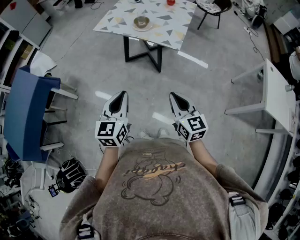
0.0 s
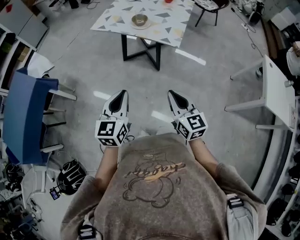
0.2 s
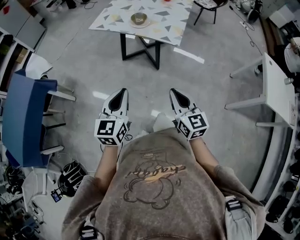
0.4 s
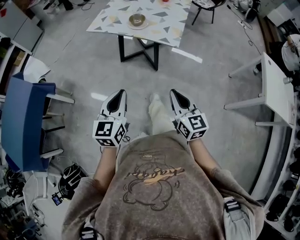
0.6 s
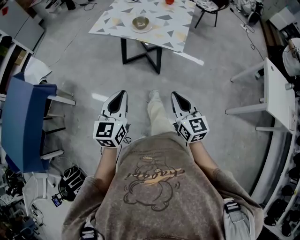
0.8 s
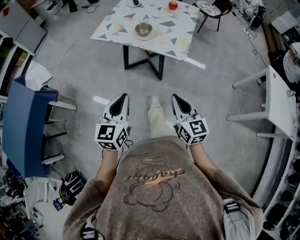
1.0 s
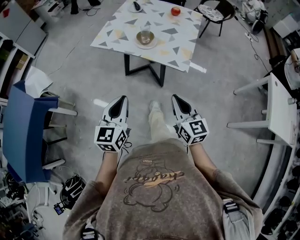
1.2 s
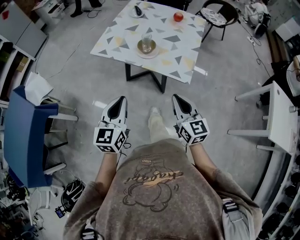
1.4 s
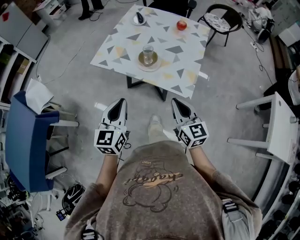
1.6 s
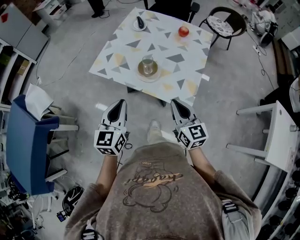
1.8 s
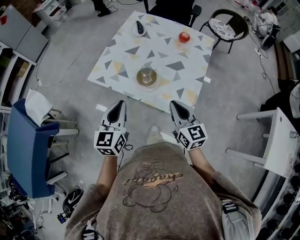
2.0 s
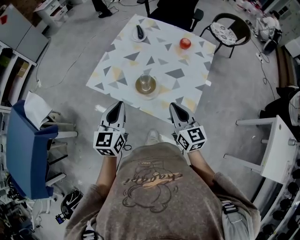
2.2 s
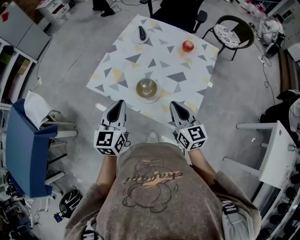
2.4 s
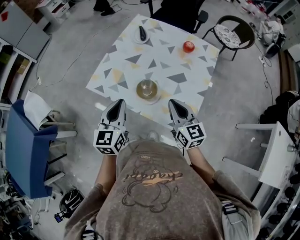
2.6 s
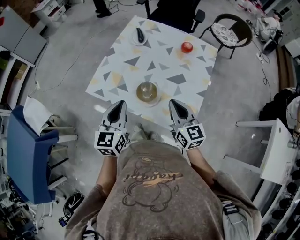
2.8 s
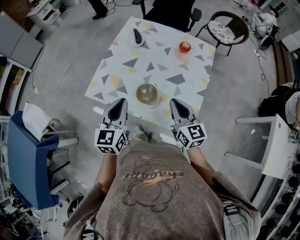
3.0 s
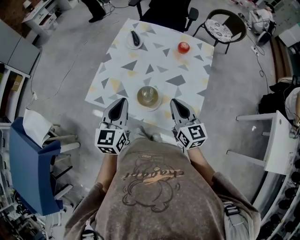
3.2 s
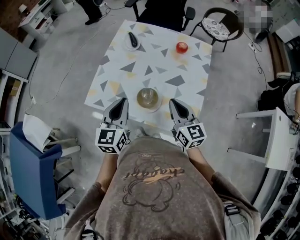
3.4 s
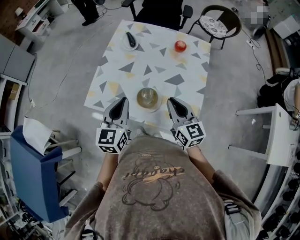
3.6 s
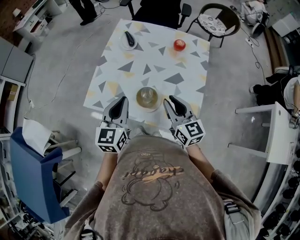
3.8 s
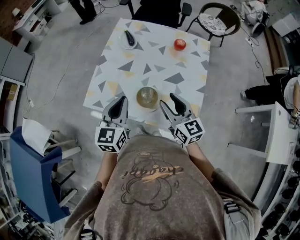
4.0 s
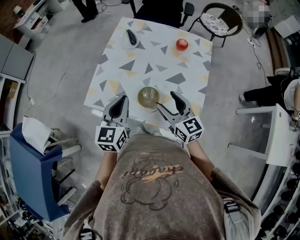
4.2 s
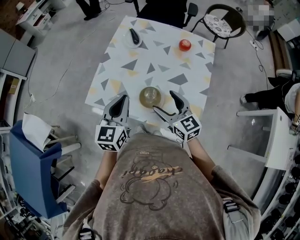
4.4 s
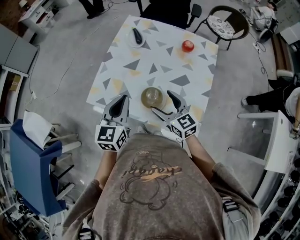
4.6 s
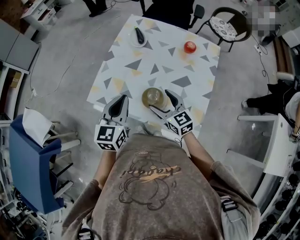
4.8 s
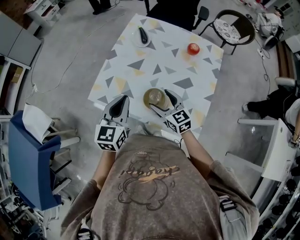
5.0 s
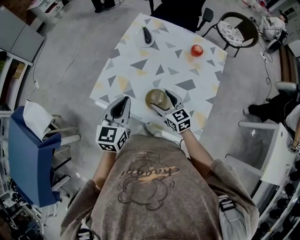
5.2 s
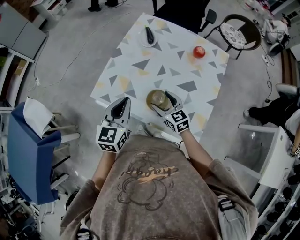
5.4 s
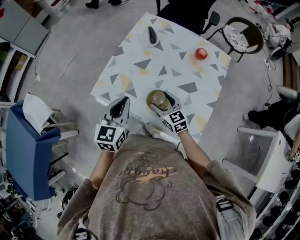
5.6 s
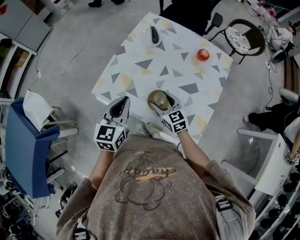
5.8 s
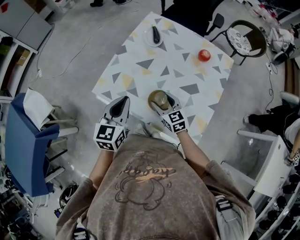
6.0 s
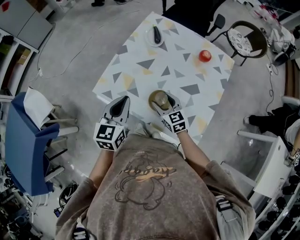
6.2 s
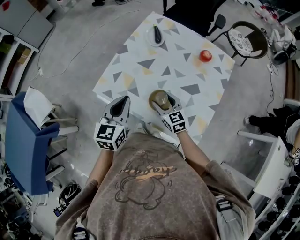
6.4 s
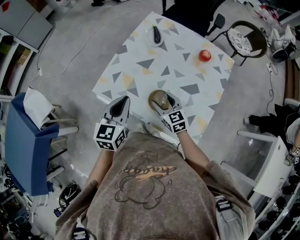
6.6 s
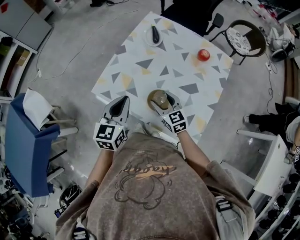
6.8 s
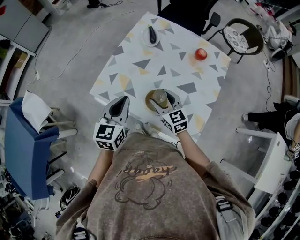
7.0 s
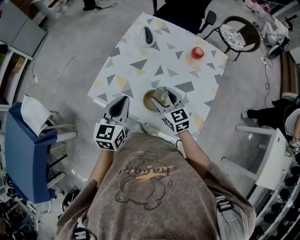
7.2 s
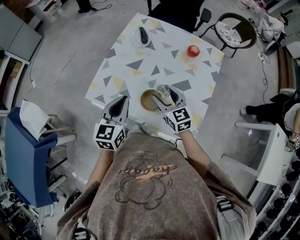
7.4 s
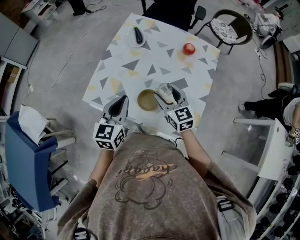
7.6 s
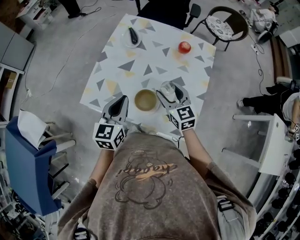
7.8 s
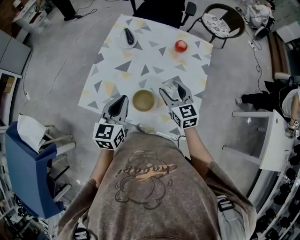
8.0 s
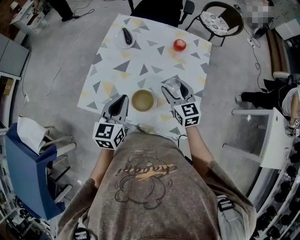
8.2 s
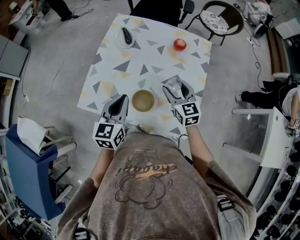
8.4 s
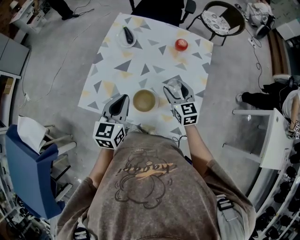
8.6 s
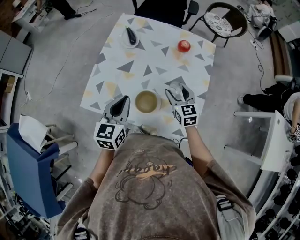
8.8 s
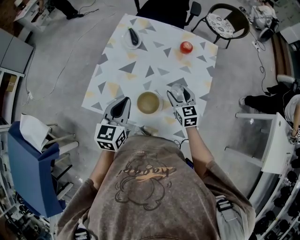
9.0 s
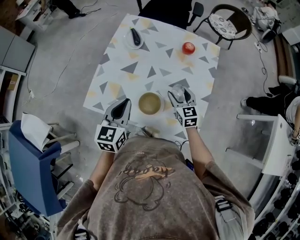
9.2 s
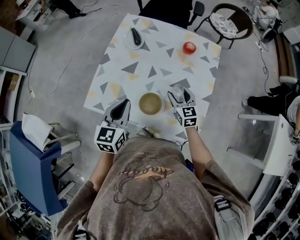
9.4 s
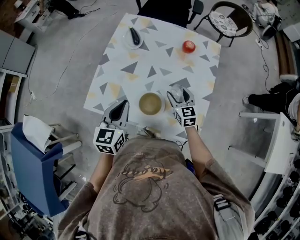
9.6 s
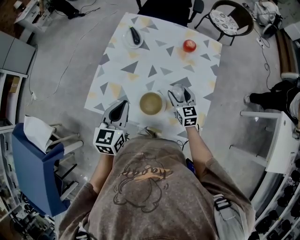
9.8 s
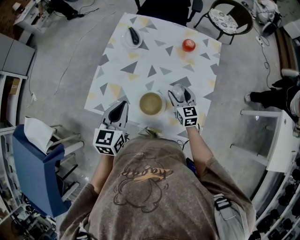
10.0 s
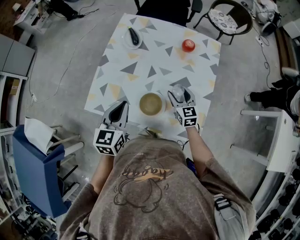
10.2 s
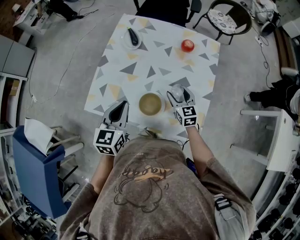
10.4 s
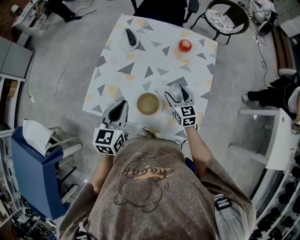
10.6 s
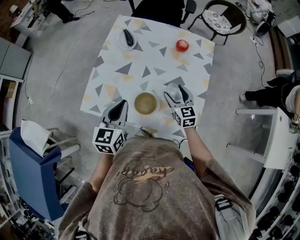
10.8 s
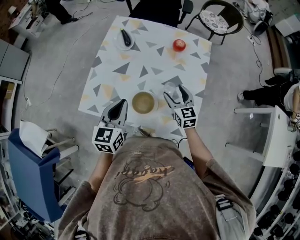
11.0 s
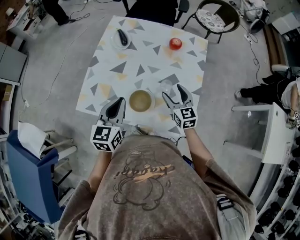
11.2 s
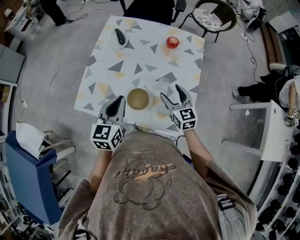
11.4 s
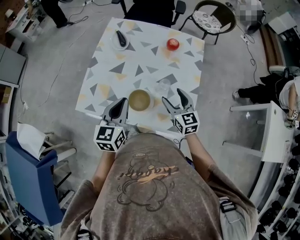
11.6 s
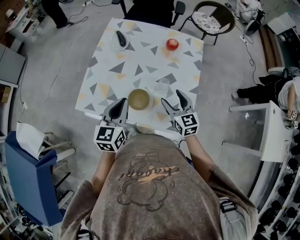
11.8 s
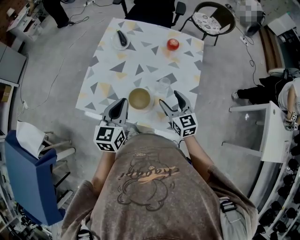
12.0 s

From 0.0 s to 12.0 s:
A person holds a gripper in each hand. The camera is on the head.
From 0.0 s to 1.6 s: The grippers both shift forward by some 30 cm.
From 1.6 s to 3.0 s: The grippers both shift forward by about 25 cm.
From 3.0 s to 4.4 s: The right gripper goes roughly 5 cm to the left, and opens. The left gripper is displaced forward by about 5 cm.
From 4.4 s to 6.0 s: The right gripper moves downward and forward, about 15 cm.
From 6.0 s to 7.6 s: The right gripper goes some 10 cm upward and to the right.
From 7.6 s to 9.0 s: The right gripper shifts roughly 10 cm to the right and downward.
From 9.0 s to 10.4 s: The grippers make only small movements.
From 10.4 s to 12.0 s: The right gripper heads backward and upward, covering about 10 cm.

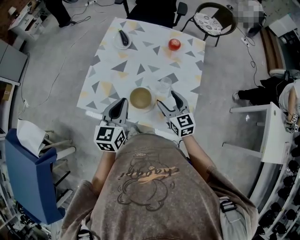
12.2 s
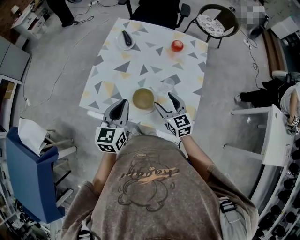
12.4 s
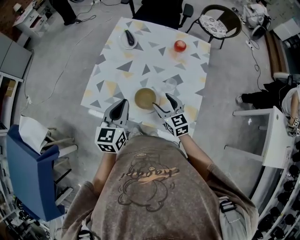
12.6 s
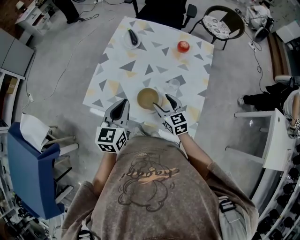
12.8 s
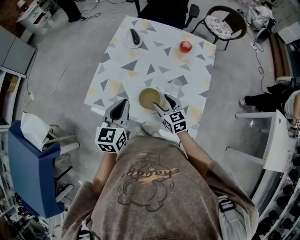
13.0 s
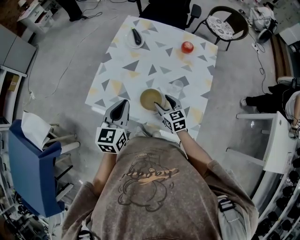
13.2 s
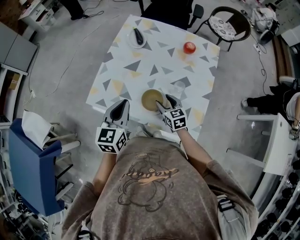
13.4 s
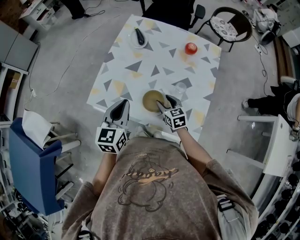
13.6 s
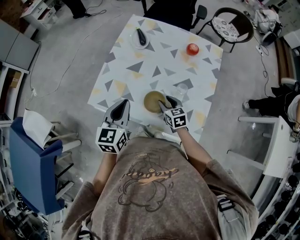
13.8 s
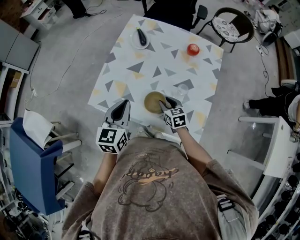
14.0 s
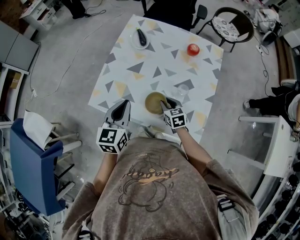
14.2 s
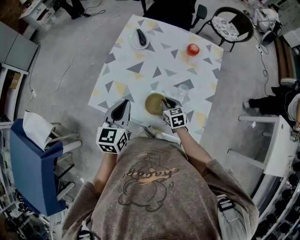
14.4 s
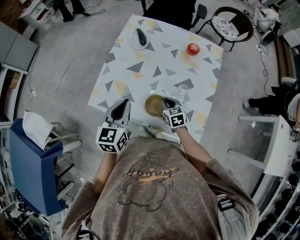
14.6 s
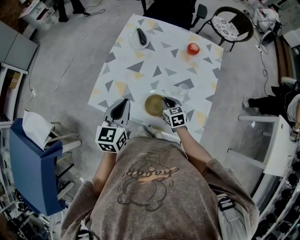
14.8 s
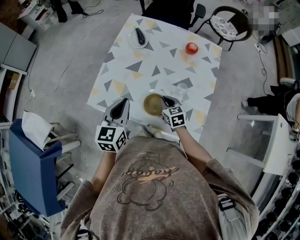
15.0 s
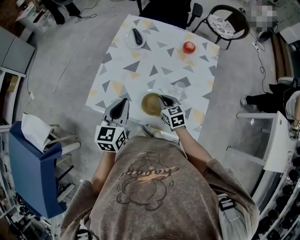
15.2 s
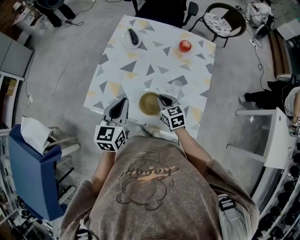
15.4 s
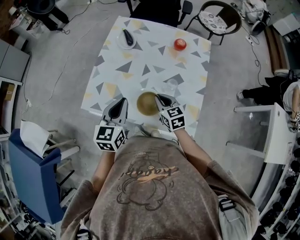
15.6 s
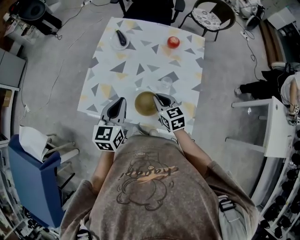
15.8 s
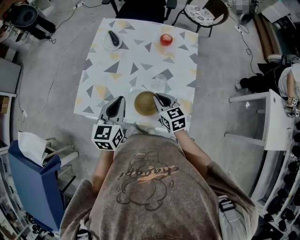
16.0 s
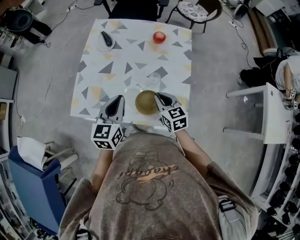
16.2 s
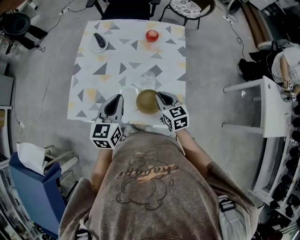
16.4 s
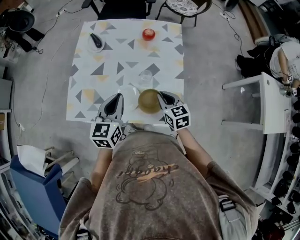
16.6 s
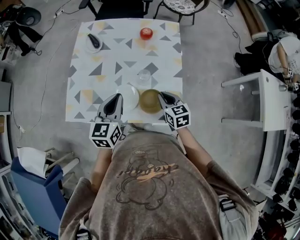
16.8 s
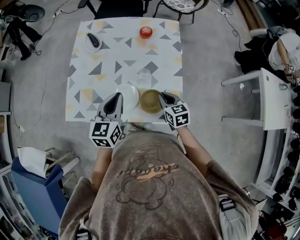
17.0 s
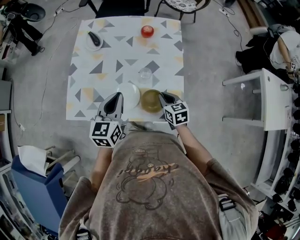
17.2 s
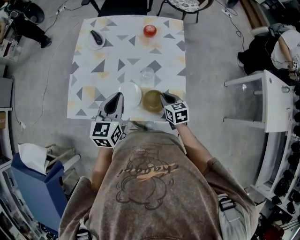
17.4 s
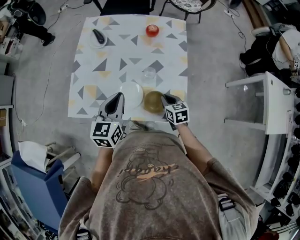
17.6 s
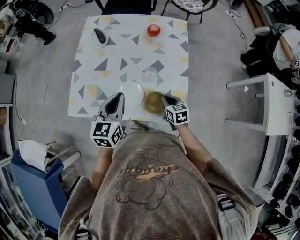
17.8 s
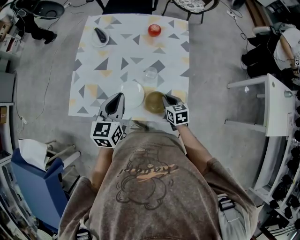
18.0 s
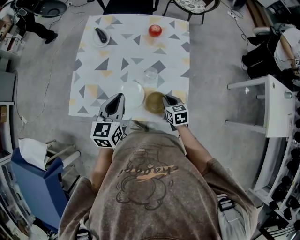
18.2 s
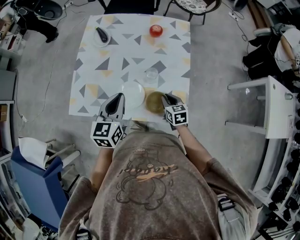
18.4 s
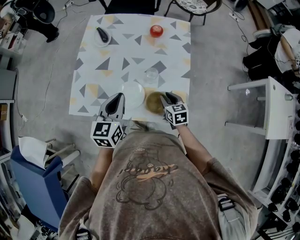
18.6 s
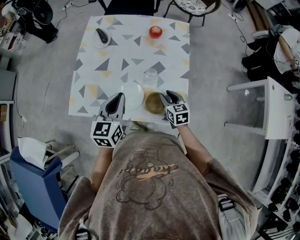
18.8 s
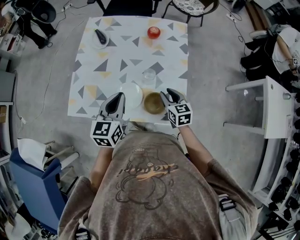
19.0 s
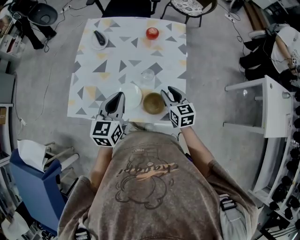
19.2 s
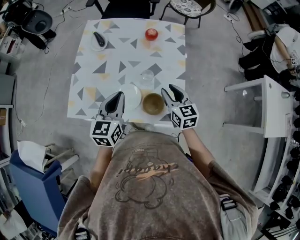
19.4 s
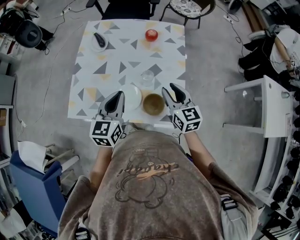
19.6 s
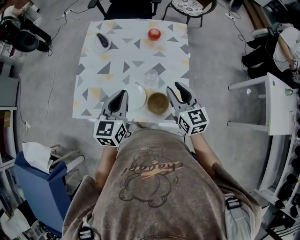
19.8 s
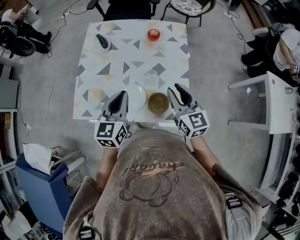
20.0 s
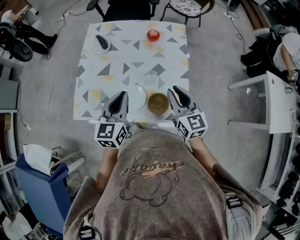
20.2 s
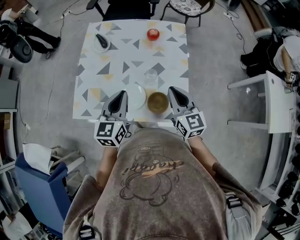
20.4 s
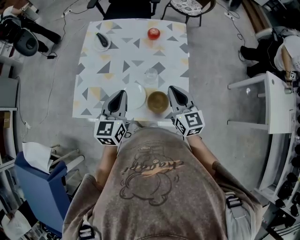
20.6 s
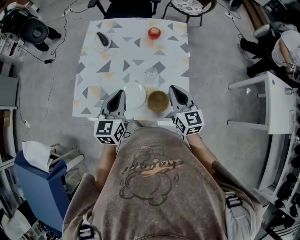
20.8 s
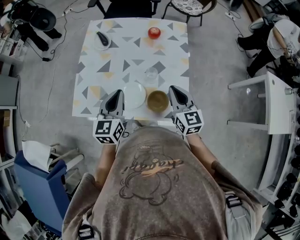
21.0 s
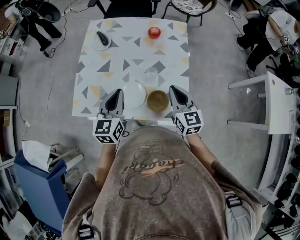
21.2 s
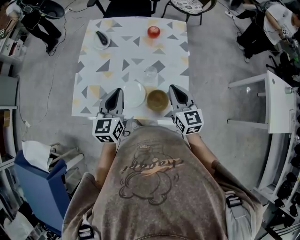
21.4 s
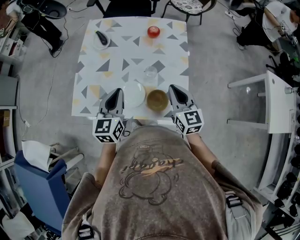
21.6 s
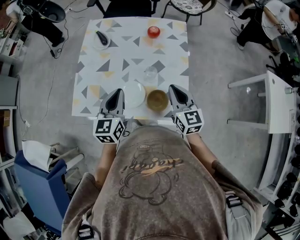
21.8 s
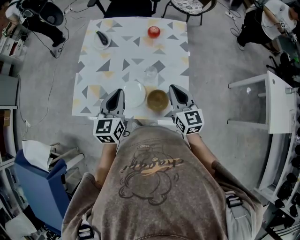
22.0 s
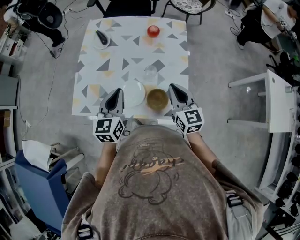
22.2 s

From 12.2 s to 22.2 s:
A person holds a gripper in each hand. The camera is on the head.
From 12.2 s to 13.6 s: The left gripper changes place by roughly 5 cm. Meanwhile the right gripper travels downward and to the left by approximately 15 cm.
From 13.6 s to 15.0 s: The right gripper closes its fingers.
From 15.0 s to 16.4 s: The left gripper heads to the right, covering approximately 10 cm. Meanwhile the right gripper is displaced to the right, upward and backward by some 15 cm.
From 16.4 s to 18.0 s: The right gripper shifts some 10 cm downward.
From 18.0 s to 19.4 s: The right gripper heads upward, covering roughly 15 cm, and rotates some 20 degrees.
From 20.8 s to 22.2 s: Both grippers stay put.

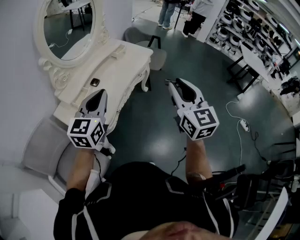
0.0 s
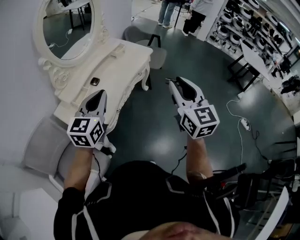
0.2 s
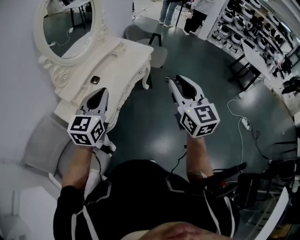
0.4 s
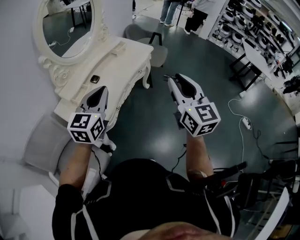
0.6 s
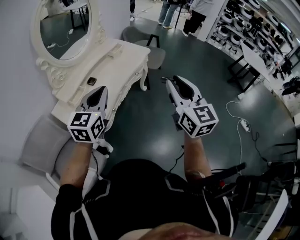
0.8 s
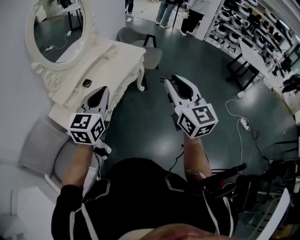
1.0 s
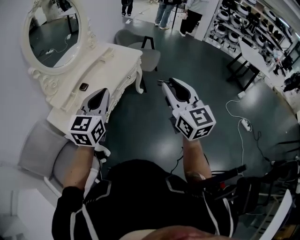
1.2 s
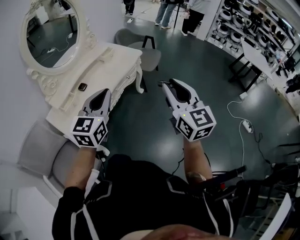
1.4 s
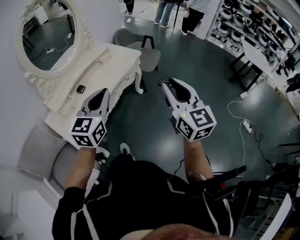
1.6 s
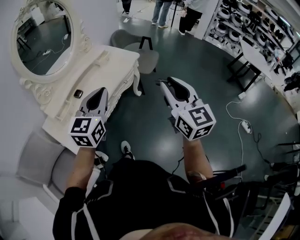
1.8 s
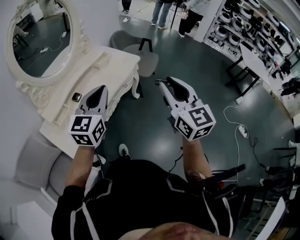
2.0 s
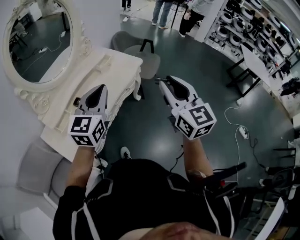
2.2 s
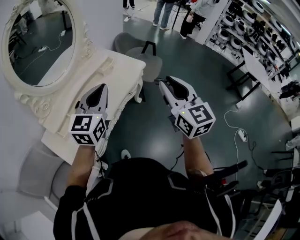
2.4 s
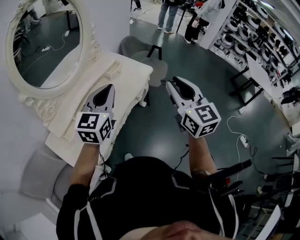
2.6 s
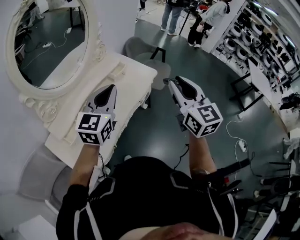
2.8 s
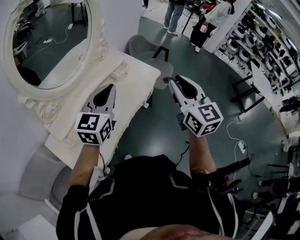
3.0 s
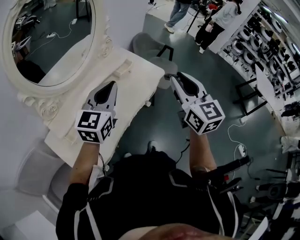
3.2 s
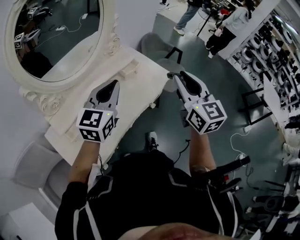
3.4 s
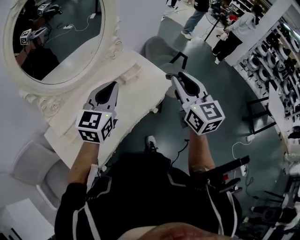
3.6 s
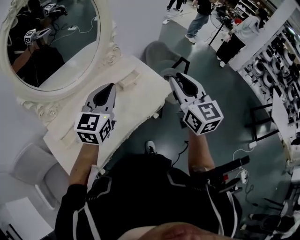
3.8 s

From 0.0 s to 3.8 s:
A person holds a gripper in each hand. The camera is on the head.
From 0.0 s to 1.2 s: The grippers both shift to the right by about 10 cm.
From 1.2 s to 2.6 s: Both grippers move forward, some 25 cm.
From 2.6 s to 3.8 s: The grippers both shift forward by approximately 20 cm.
